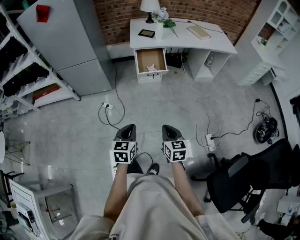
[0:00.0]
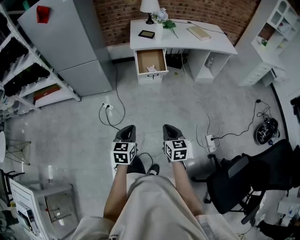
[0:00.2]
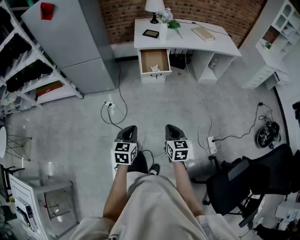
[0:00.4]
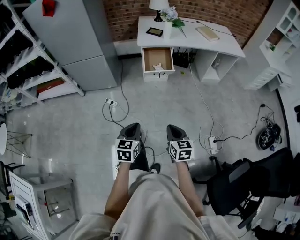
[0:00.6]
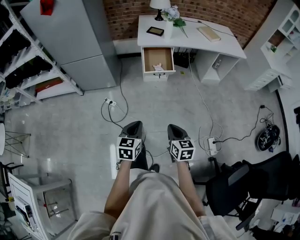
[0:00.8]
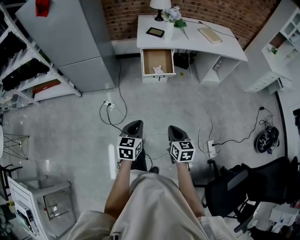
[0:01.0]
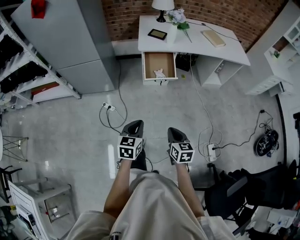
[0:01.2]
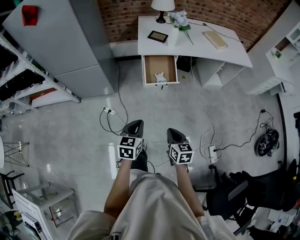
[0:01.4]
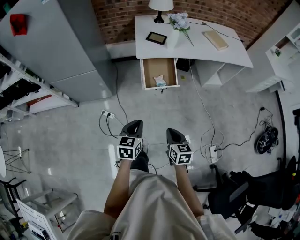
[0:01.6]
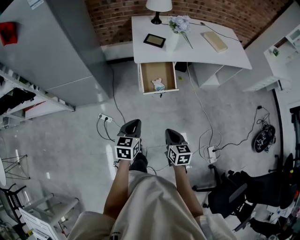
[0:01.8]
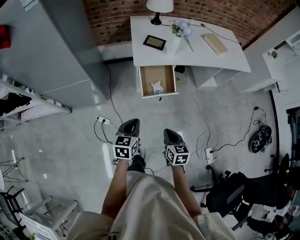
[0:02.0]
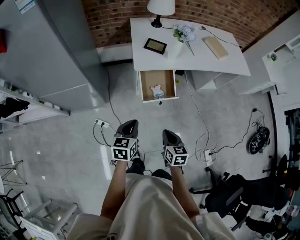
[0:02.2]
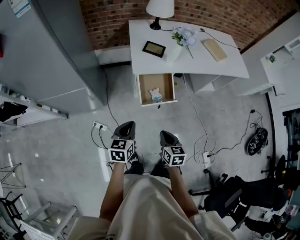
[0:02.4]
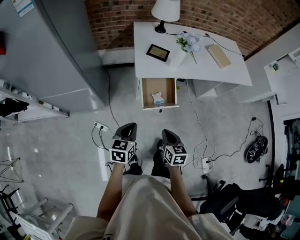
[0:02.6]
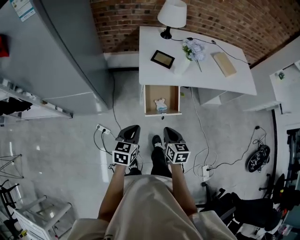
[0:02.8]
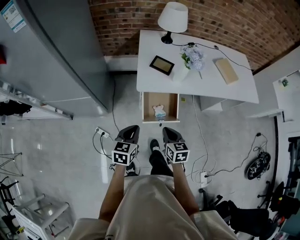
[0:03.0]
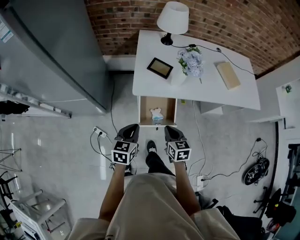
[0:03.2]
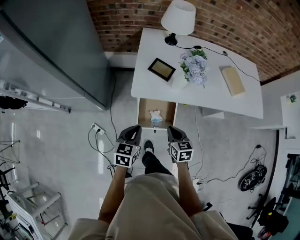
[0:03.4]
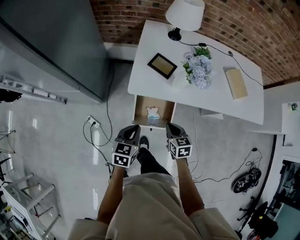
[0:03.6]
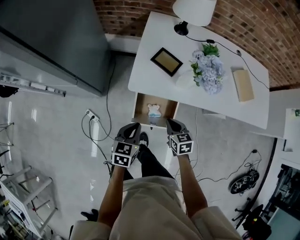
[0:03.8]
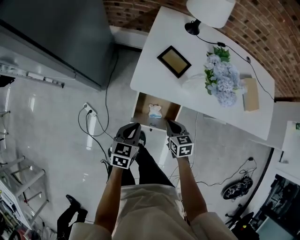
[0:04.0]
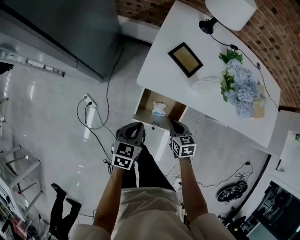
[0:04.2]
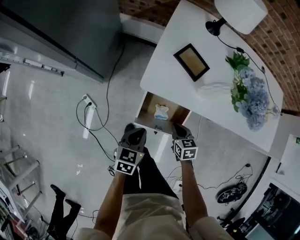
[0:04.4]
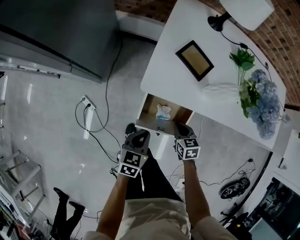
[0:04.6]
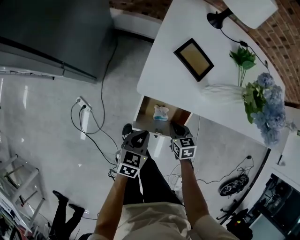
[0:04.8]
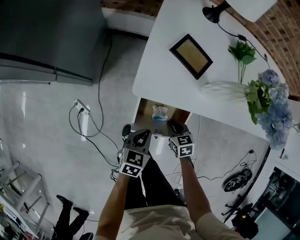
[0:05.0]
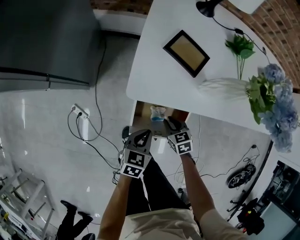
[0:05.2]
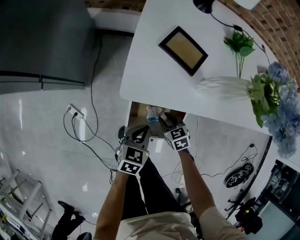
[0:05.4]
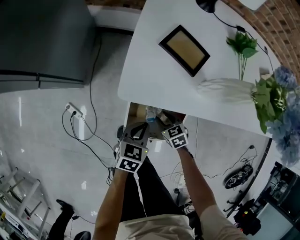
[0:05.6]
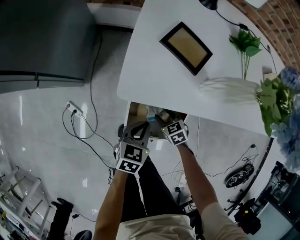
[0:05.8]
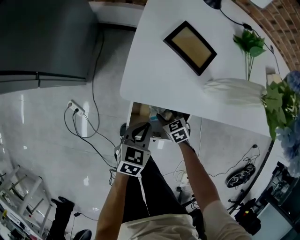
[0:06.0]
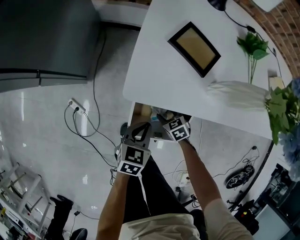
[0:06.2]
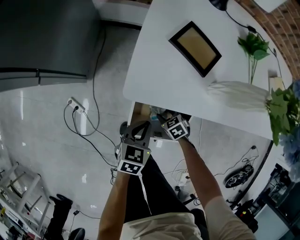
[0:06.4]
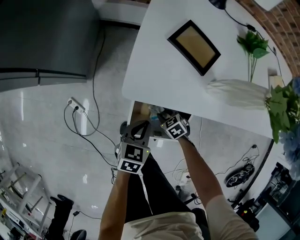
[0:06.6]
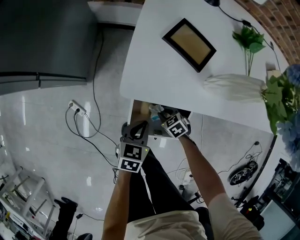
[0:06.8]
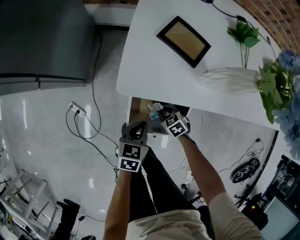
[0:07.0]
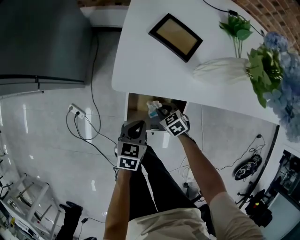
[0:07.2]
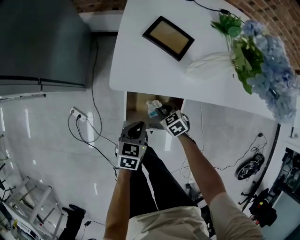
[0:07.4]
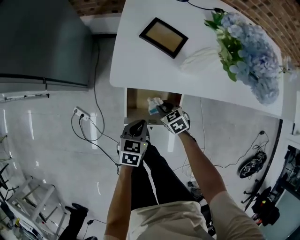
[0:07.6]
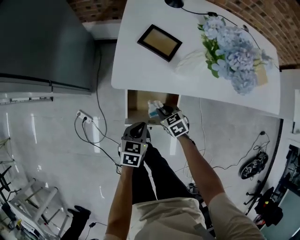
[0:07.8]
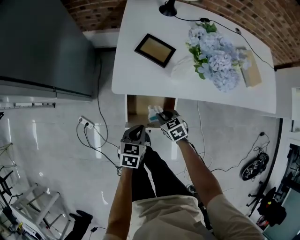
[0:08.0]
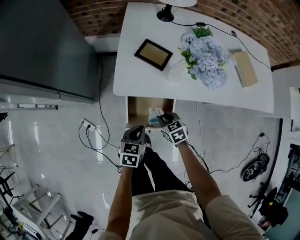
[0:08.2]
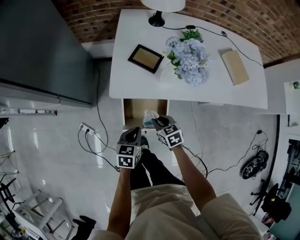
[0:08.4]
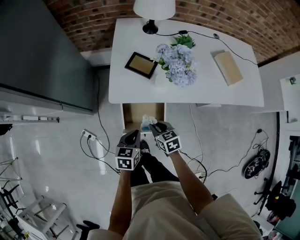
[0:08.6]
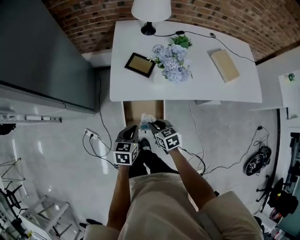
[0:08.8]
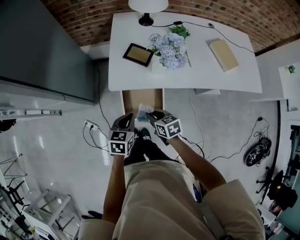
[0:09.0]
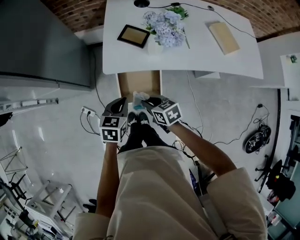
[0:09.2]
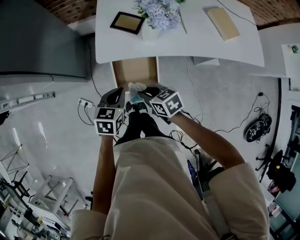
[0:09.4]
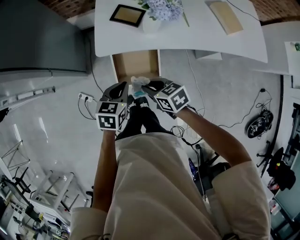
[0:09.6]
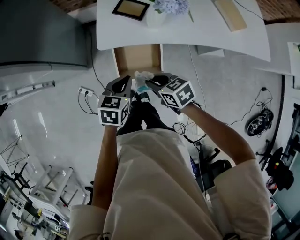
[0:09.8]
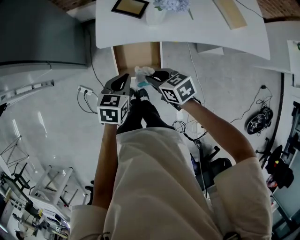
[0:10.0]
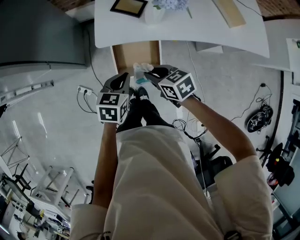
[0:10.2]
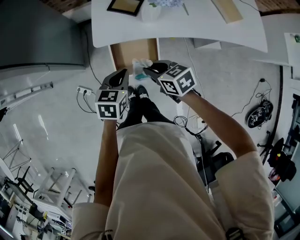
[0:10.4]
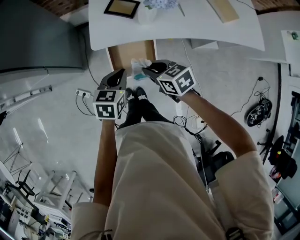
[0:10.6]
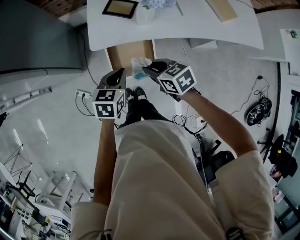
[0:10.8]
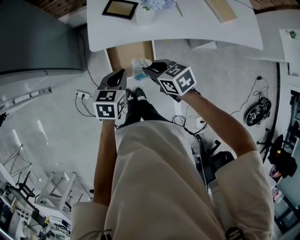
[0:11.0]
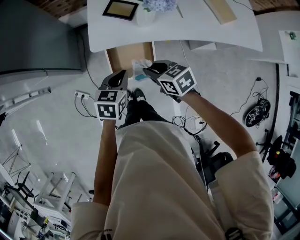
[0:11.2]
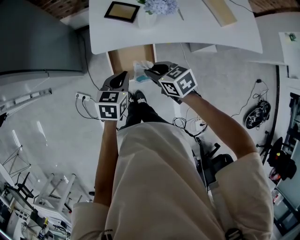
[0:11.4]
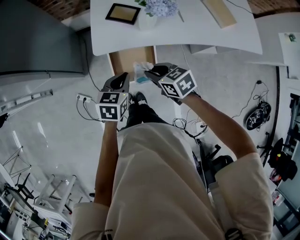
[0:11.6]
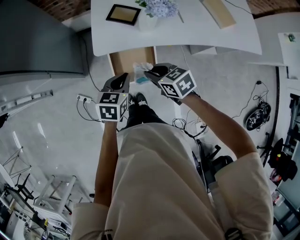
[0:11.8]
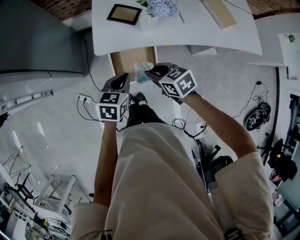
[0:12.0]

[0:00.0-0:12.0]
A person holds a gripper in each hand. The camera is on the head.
0:00.0 to 0:01.6: Both grippers move forward, roughly 25 cm.
0:01.6 to 0:03.0: Both grippers travel together forward, approximately 25 cm.
0:03.0 to 0:04.4: Both grippers move downward, forward and to the right, about 25 cm. The right gripper rotates about 30 degrees.
0:04.4 to 0:06.0: The left gripper shifts roughly 15 cm downward, forward and to the right; the right gripper travels downward by approximately 15 cm, and opens.
0:06.0 to 0:07.6: The right gripper shifts roughly 10 cm upward, and closes up.
0:07.6 to 0:09.0: Both grippers travel together upward, some 20 cm. The right gripper changes its angle by some 30 degrees.
0:09.0 to 0:10.4: The grippers move only a little.
0:10.4 to 0:12.0: The grippers make only small movements.

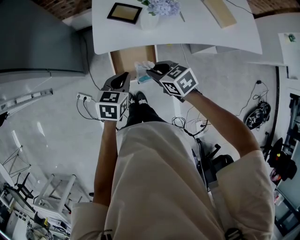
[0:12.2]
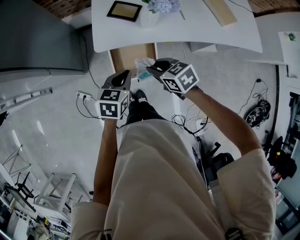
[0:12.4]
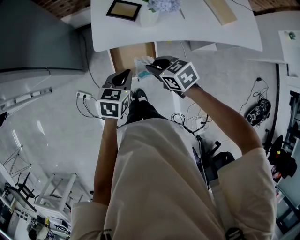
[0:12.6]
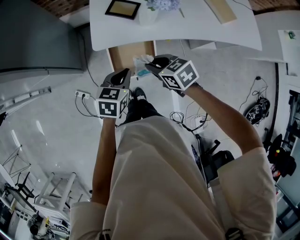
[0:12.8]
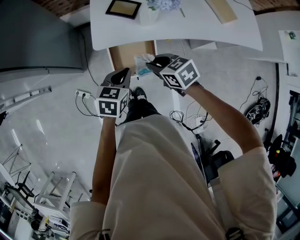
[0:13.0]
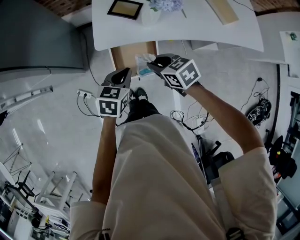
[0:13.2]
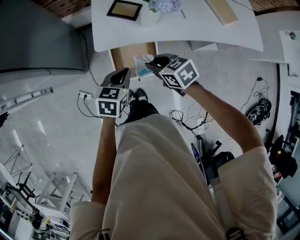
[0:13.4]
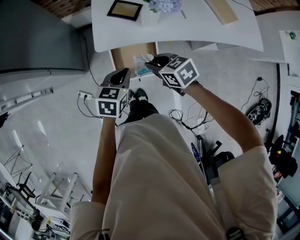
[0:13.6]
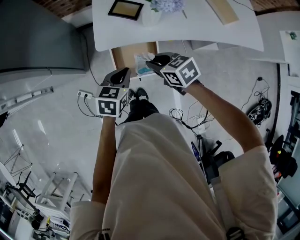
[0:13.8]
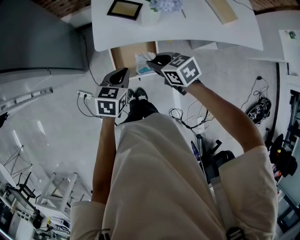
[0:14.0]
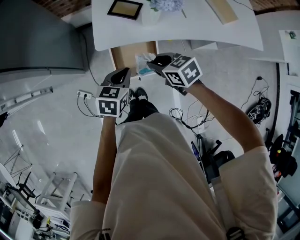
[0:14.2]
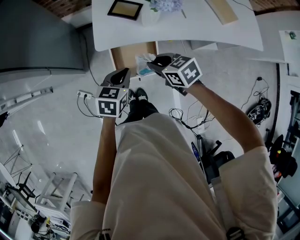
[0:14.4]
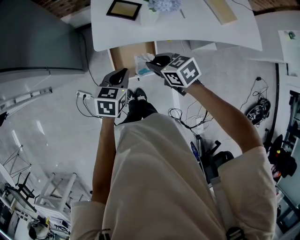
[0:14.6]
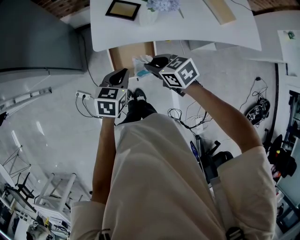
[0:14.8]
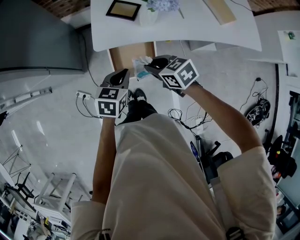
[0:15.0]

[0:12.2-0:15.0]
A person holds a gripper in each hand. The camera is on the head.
0:12.2 to 0:13.6: The grippers move only a little.
0:13.6 to 0:15.0: The two grippers keep their place.

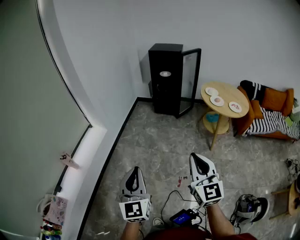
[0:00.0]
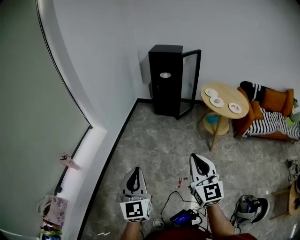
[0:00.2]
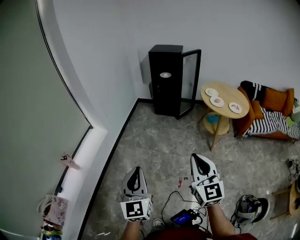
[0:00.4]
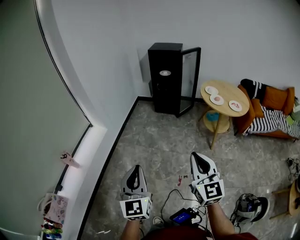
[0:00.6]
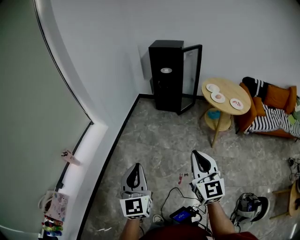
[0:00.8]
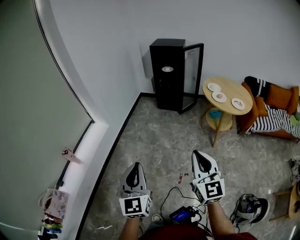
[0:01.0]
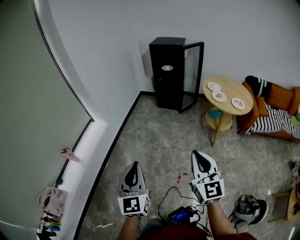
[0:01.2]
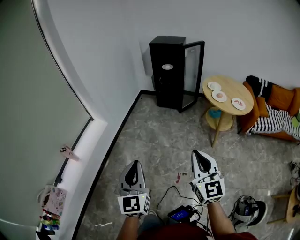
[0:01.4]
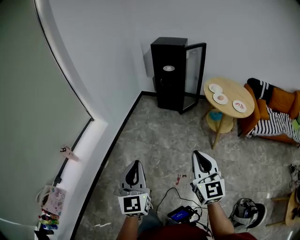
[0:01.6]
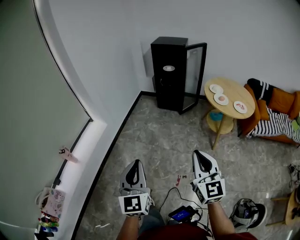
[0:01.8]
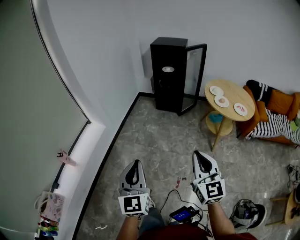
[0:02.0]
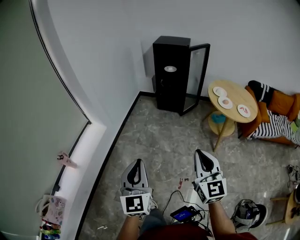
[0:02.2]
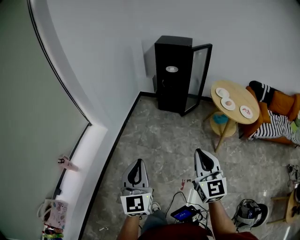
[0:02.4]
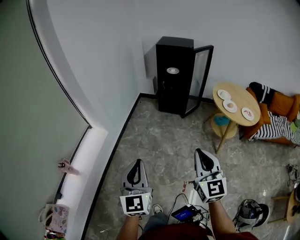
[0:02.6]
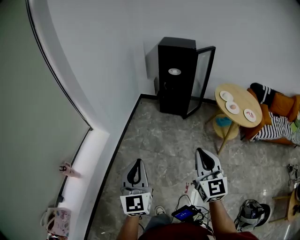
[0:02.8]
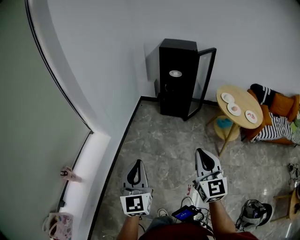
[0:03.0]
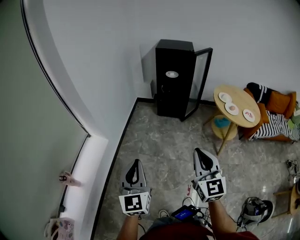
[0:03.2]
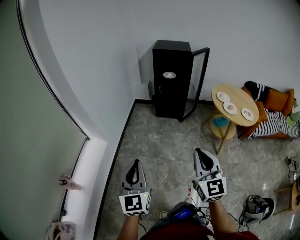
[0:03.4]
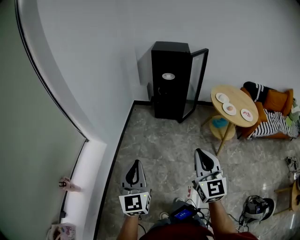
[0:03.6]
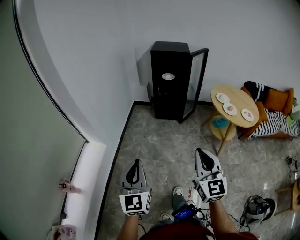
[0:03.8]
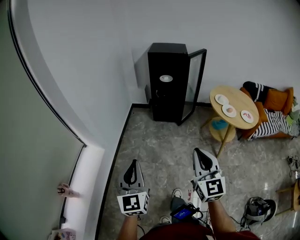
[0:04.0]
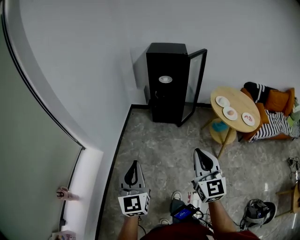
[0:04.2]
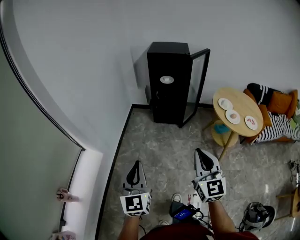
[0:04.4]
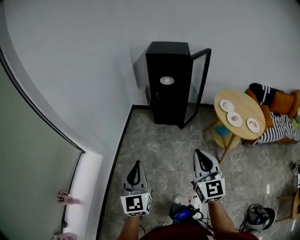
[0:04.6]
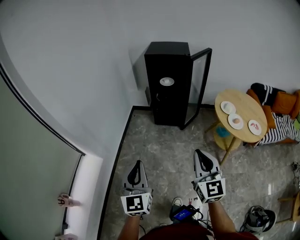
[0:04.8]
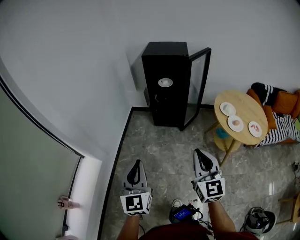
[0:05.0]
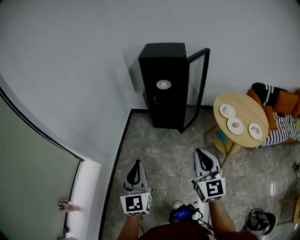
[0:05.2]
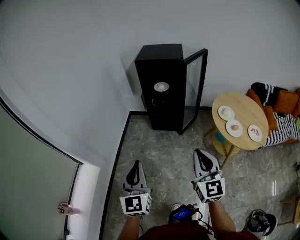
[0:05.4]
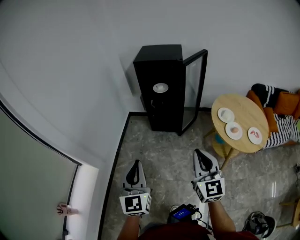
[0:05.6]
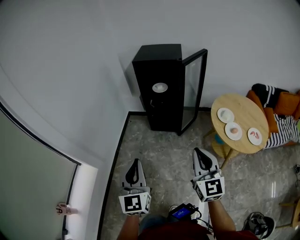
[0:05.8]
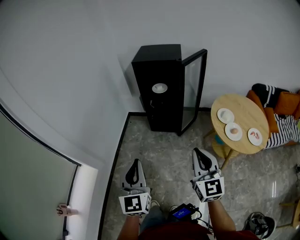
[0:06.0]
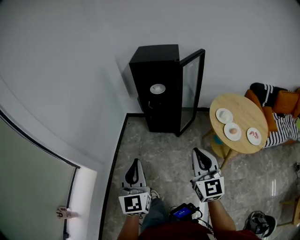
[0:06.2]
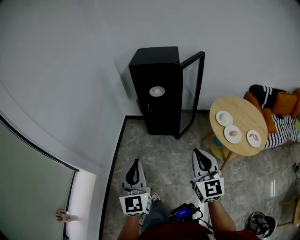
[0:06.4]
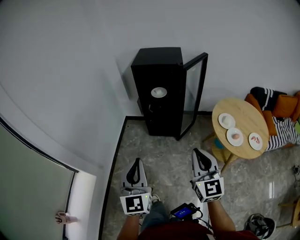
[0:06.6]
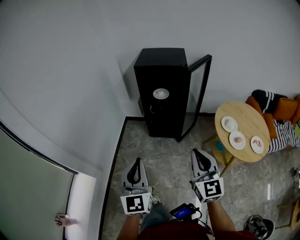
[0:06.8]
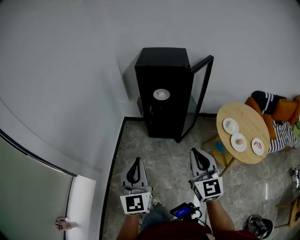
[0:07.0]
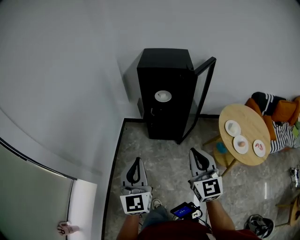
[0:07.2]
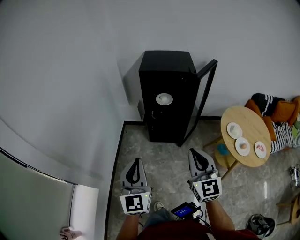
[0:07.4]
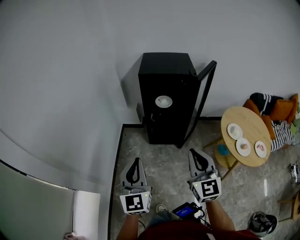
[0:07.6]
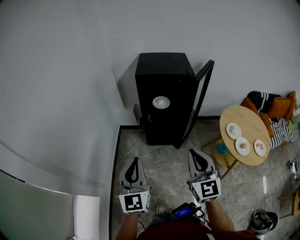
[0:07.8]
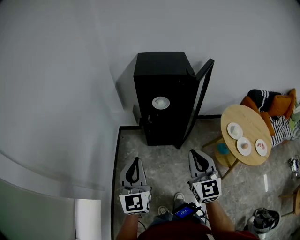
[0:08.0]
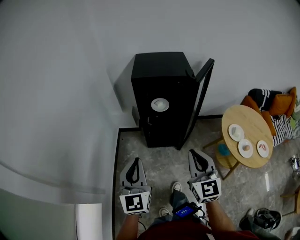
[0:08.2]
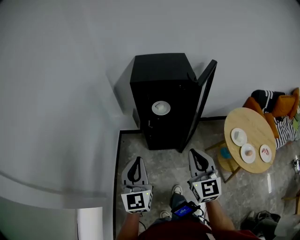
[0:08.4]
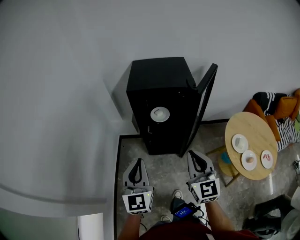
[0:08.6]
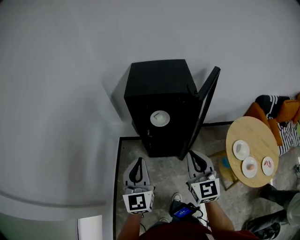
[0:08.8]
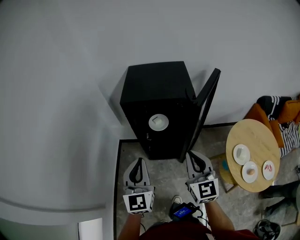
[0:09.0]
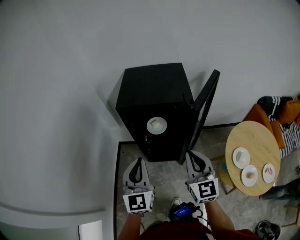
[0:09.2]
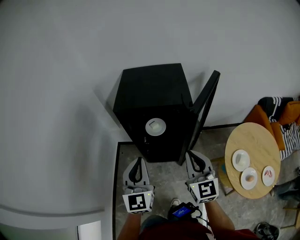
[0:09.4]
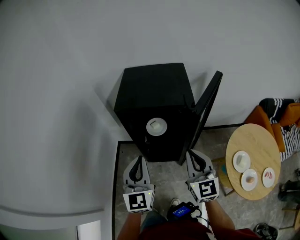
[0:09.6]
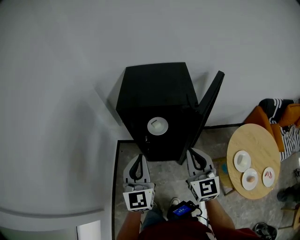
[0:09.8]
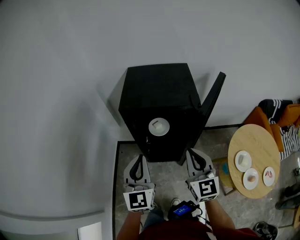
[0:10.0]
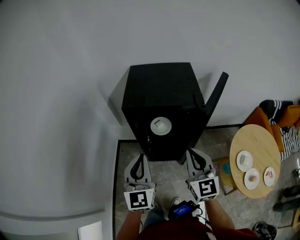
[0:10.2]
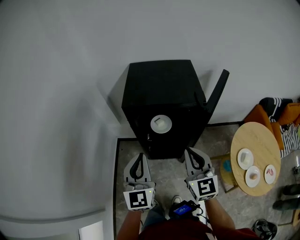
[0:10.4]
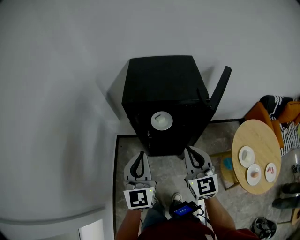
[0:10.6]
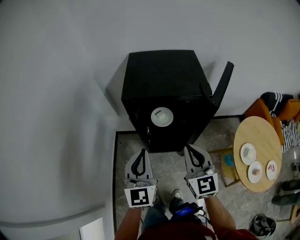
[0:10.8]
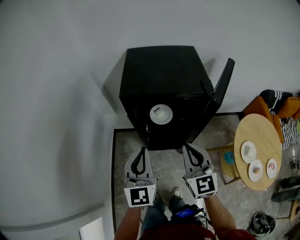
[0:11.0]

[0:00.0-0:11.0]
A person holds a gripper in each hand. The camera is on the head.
0:00.0 to 0:01.6: The grippers both shift to the right by some 10 cm.
0:01.6 to 0:03.2: Both grippers travel together forward and to the left, approximately 30 cm.
0:03.2 to 0:04.8: The two grippers go some 20 cm forward and to the right.
0:04.8 to 0:06.2: Both grippers move forward and to the right, some 15 cm.
0:06.2 to 0:07.8: Both grippers travel together forward and to the left, some 25 cm.
0:07.8 to 0:09.4: The right gripper heads forward, covering some 30 cm, while the left gripper heads forward and to the right, covering approximately 30 cm.
0:09.4 to 0:11.0: The right gripper moves to the left, some 10 cm. Meanwhile the left gripper moves to the left and forward, some 10 cm.
